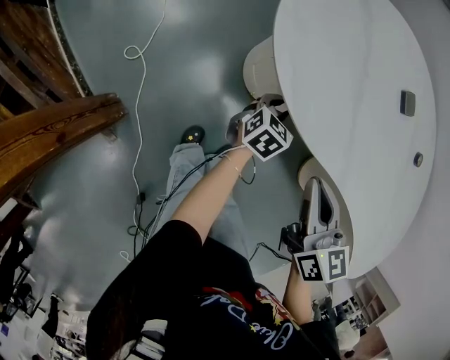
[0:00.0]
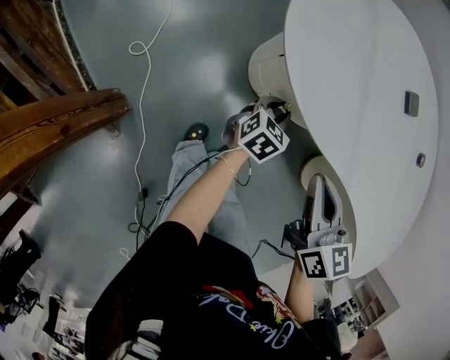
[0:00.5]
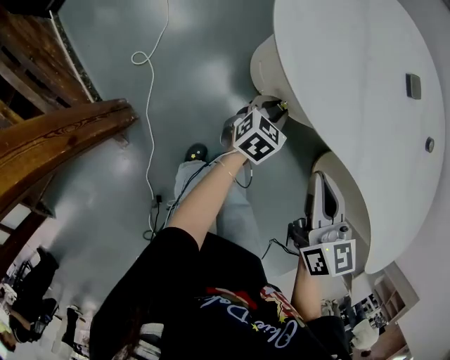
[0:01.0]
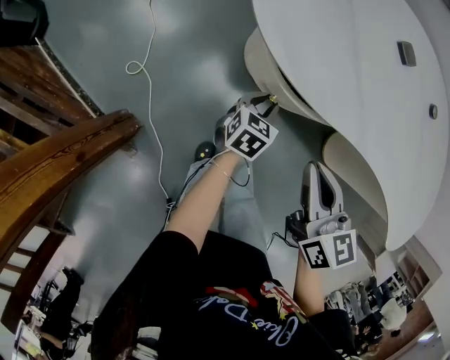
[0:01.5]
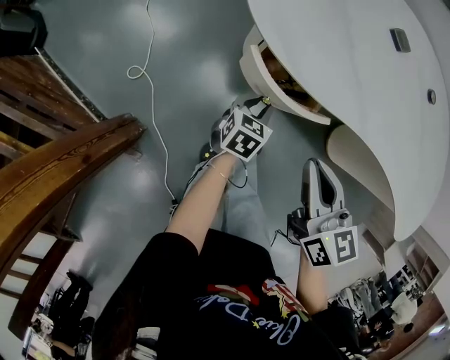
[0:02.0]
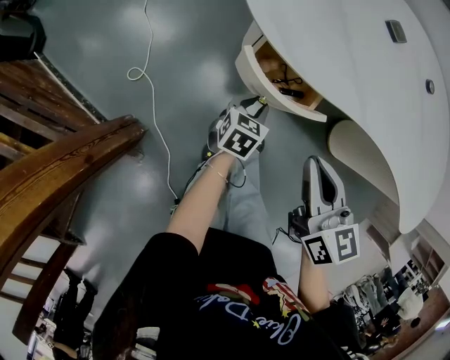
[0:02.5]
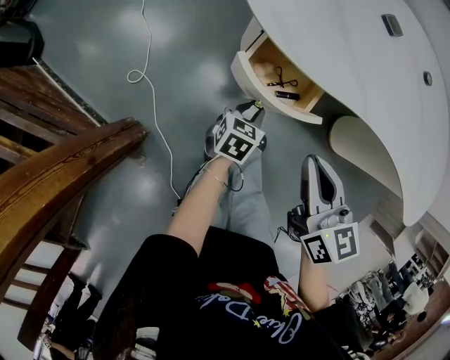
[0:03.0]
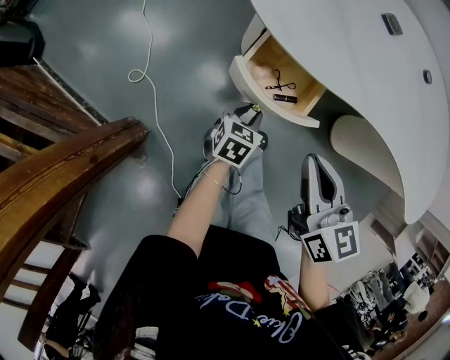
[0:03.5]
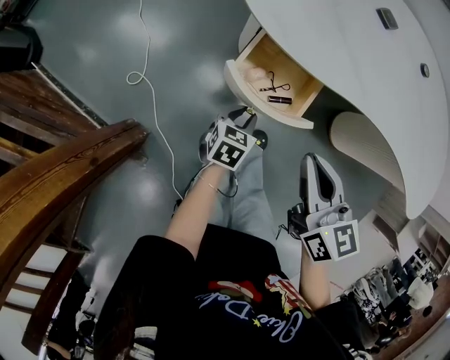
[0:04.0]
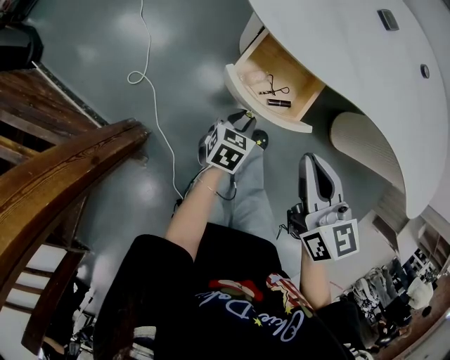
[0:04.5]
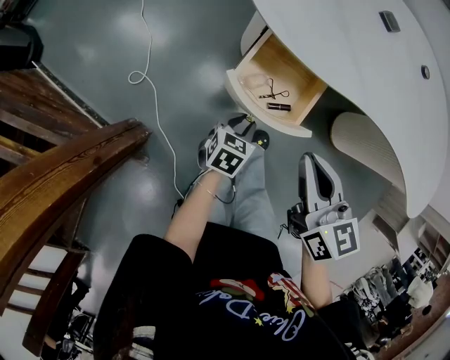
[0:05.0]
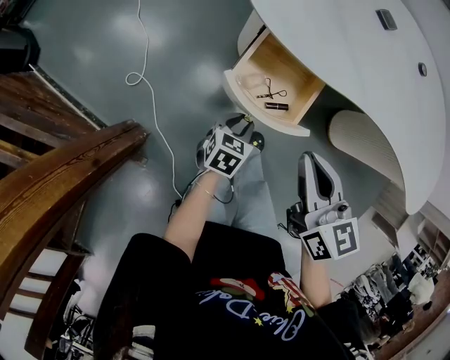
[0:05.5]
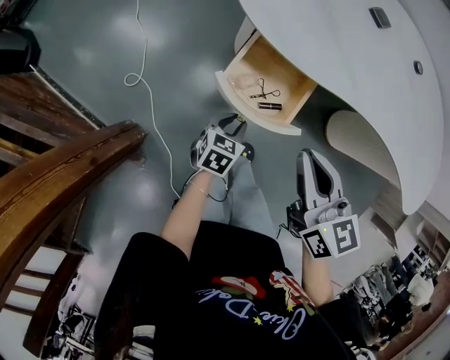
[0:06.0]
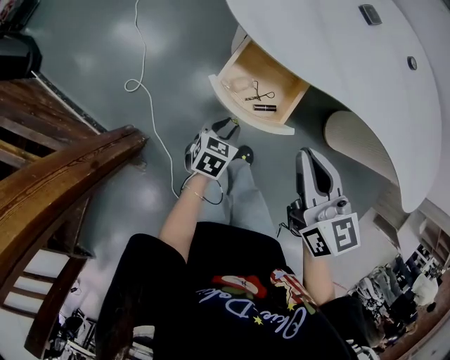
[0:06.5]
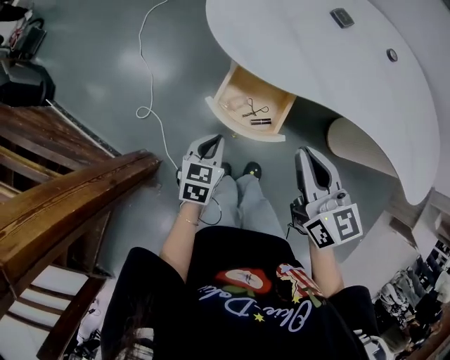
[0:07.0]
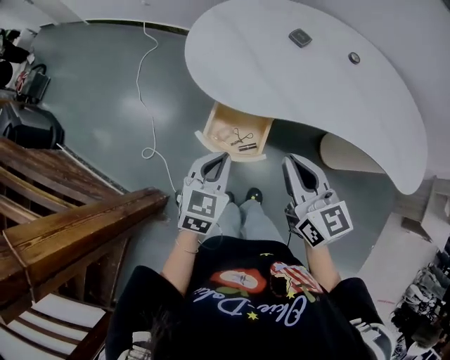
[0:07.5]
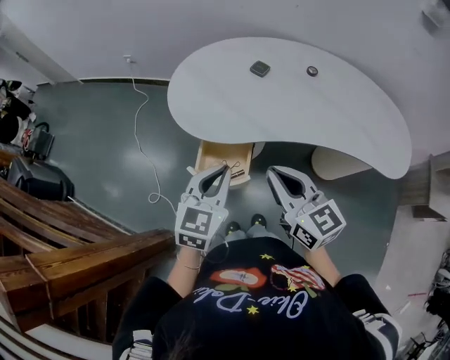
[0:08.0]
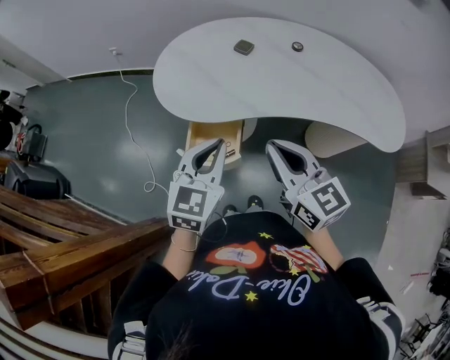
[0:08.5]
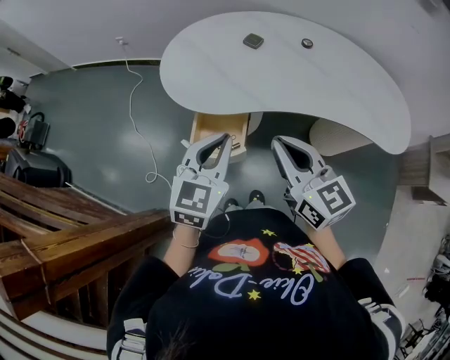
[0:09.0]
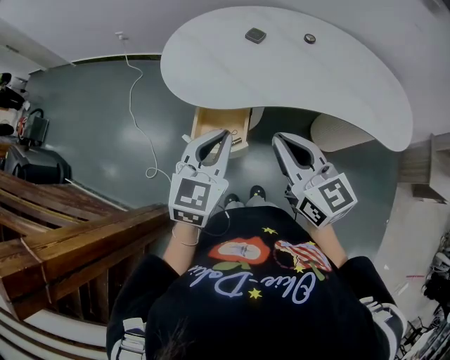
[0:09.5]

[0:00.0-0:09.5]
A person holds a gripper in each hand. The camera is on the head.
0:00.0 to 0:02.0: Both grippers move backward, about 10 cm.
0:02.0 to 0:04.0: The left gripper is displaced backward by about 10 cm.
0:04.0 to 0:05.5: The grippers make only small movements.
0:05.5 to 0:07.5: The right gripper is displaced upward and to the right by about 15 cm. Meanwhile the left gripper goes some 30 cm upward, turns by some 20 degrees, and closes up.
0:07.5 to 0:09.5: The left gripper travels upward and to the right by roughly 15 cm. The right gripper travels upward by roughly 10 cm.

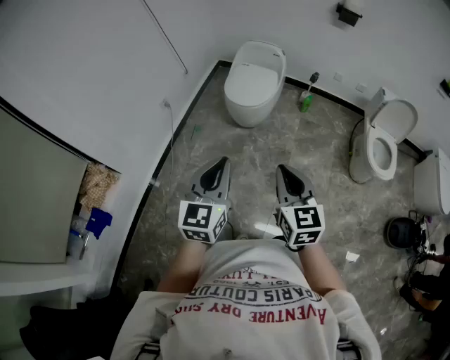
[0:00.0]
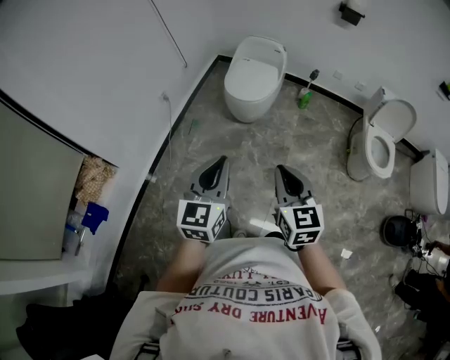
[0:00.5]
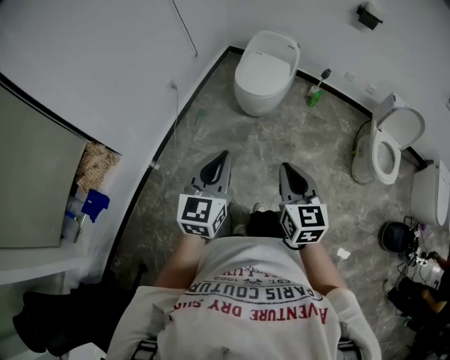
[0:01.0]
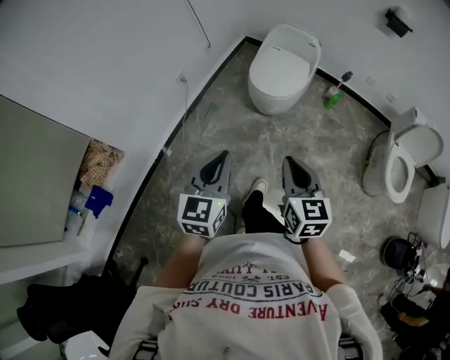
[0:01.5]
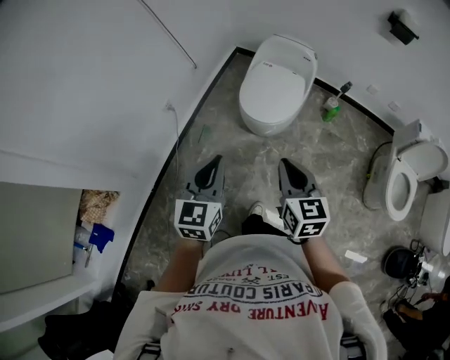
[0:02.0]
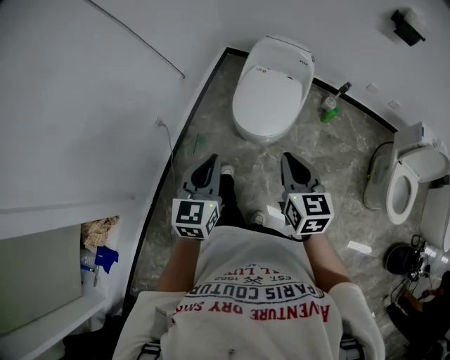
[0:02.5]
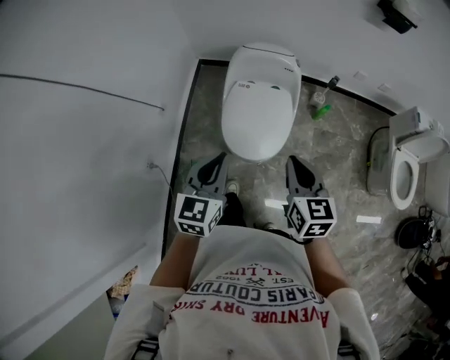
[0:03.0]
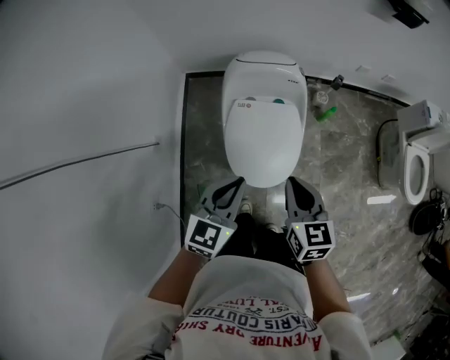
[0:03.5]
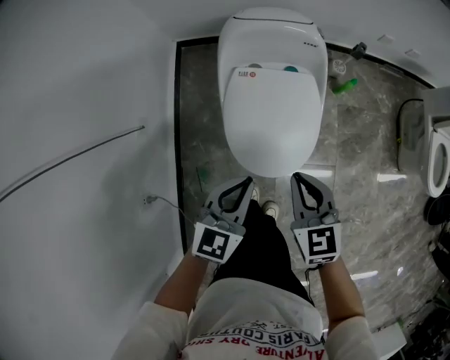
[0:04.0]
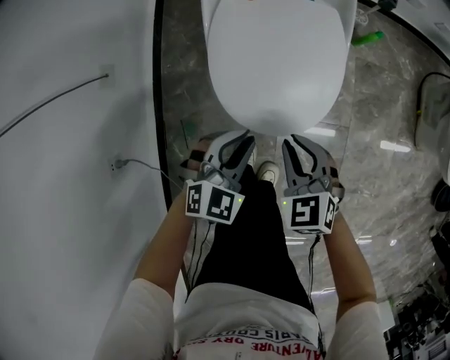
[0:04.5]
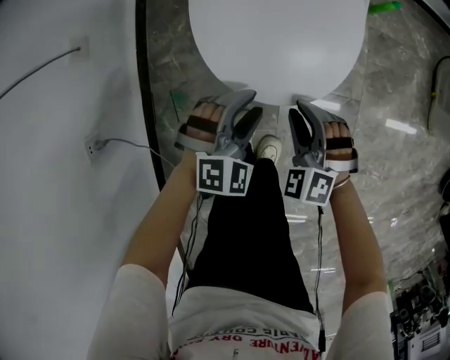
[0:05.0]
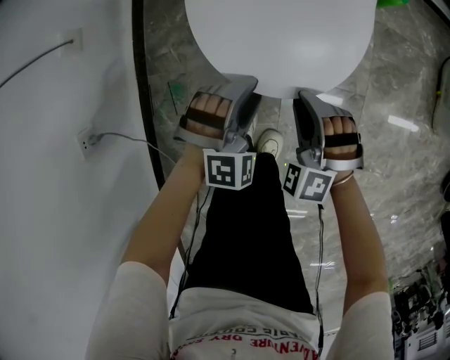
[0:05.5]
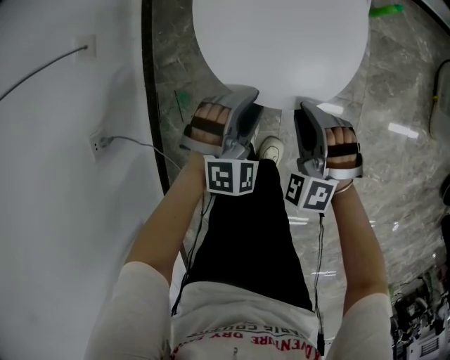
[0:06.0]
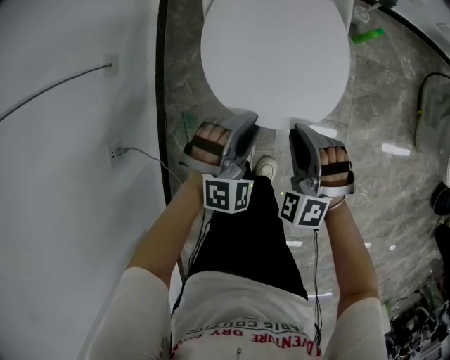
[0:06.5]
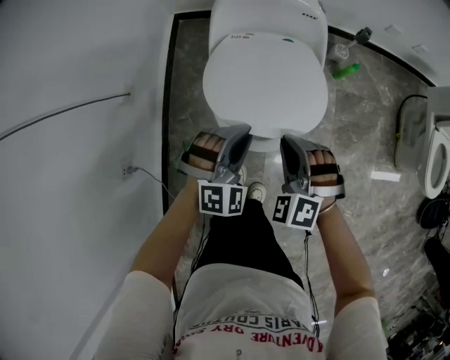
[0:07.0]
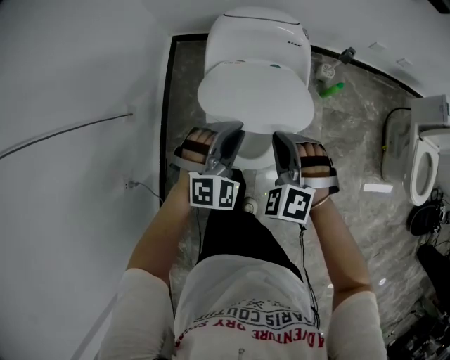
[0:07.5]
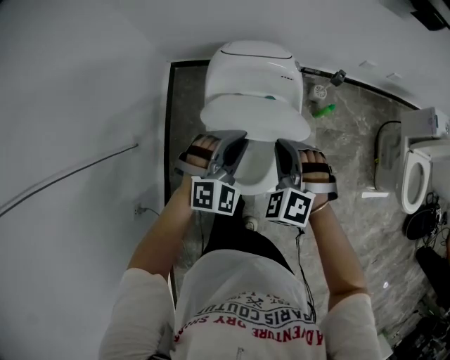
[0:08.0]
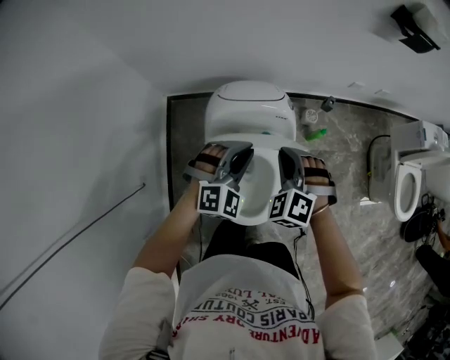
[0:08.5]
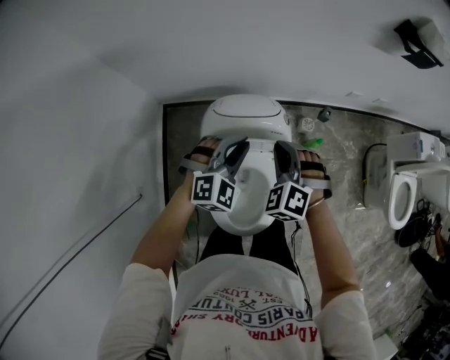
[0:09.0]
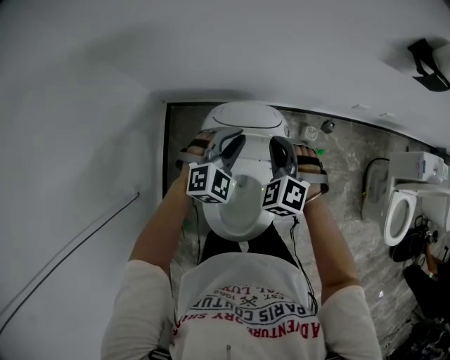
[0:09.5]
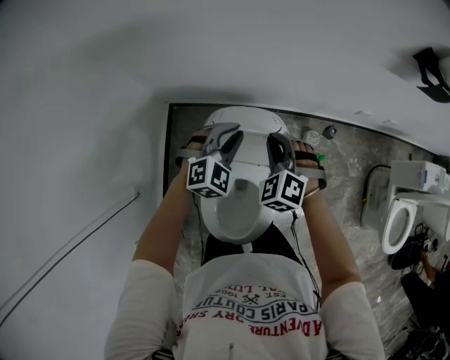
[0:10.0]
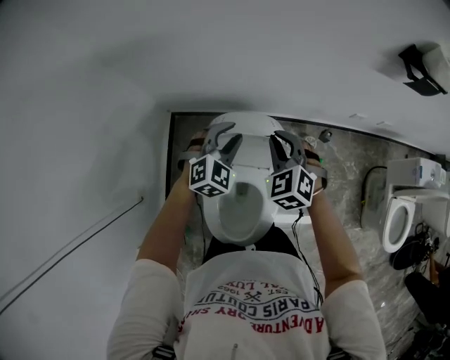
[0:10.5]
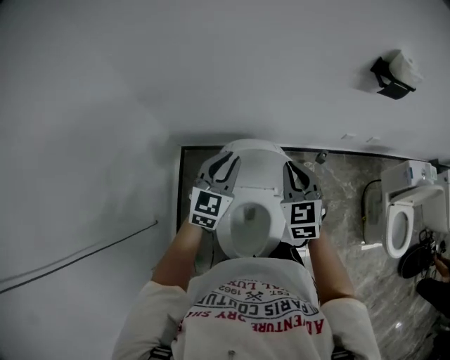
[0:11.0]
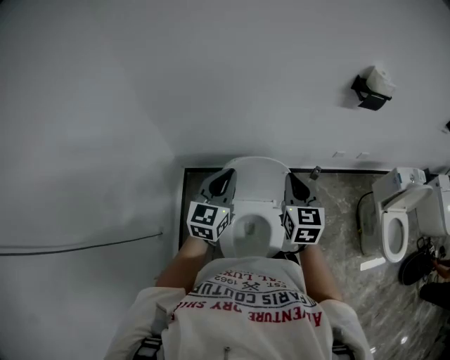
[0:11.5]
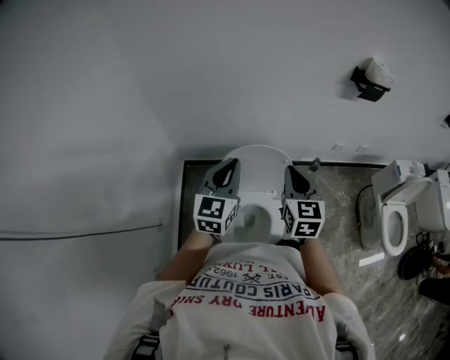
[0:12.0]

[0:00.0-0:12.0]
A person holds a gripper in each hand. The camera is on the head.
0:00.0 to 0:02.0: Both grippers travel together forward, approximately 35 cm.
0:02.0 to 0:04.0: Both grippers are carried roughly 40 cm. The left gripper swivels some 40 degrees. The right gripper changes its angle by approximately 20 degrees.
0:04.0 to 0:06.0: Both grippers travel together downward, approximately 30 cm. The right gripper twists approximately 60 degrees counterclockwise, seen from behind, while the left gripper rolls clockwise, seen from behind, by approximately 50 degrees, and opens its fingers.
0:06.0 to 0:08.0: Both grippers move upward and forward, about 40 cm. The left gripper closes up.
0:08.0 to 0:10.0: The grippers both shift forward by some 30 cm.
0:10.0 to 0:12.0: Both grippers move upward and backward, roughly 30 cm. The right gripper rolls clockwise, seen from behind, by roughly 50 degrees. The left gripper changes its angle by approximately 50 degrees.

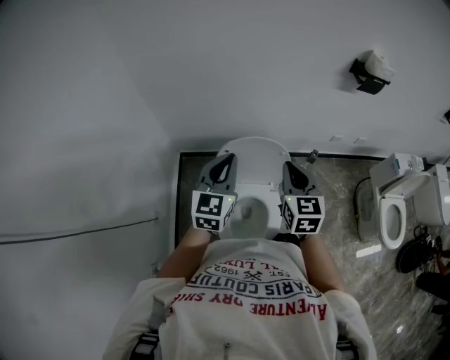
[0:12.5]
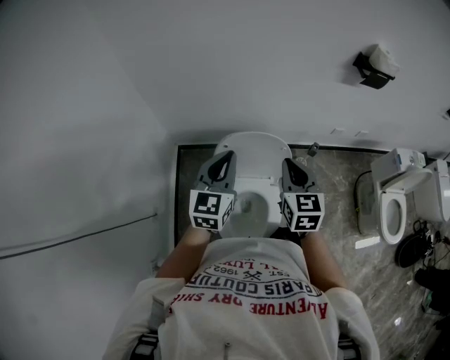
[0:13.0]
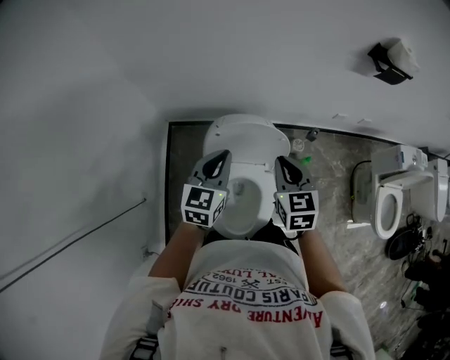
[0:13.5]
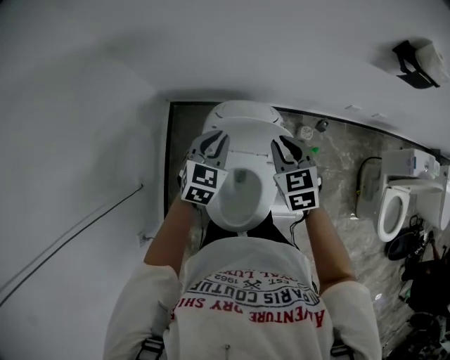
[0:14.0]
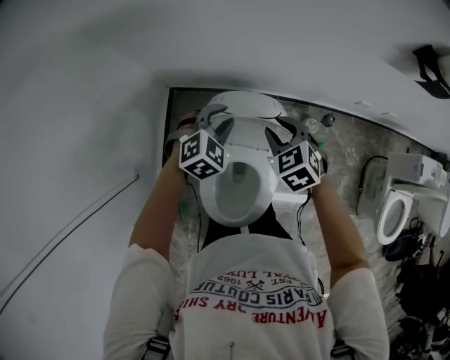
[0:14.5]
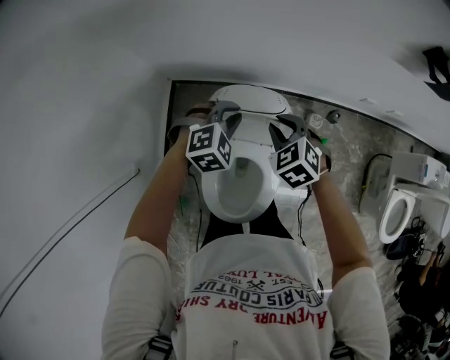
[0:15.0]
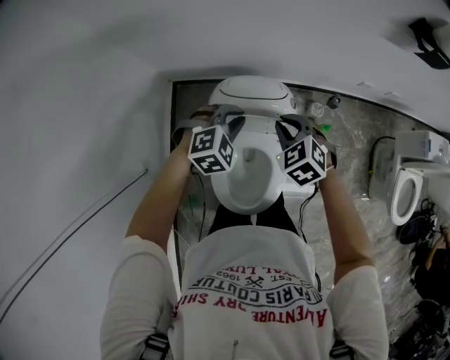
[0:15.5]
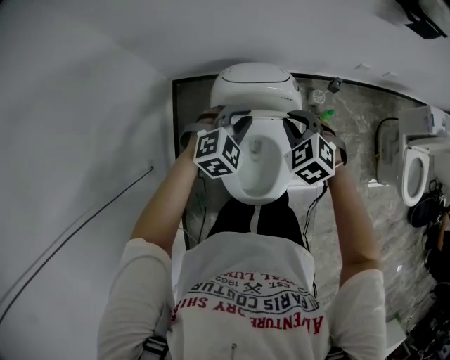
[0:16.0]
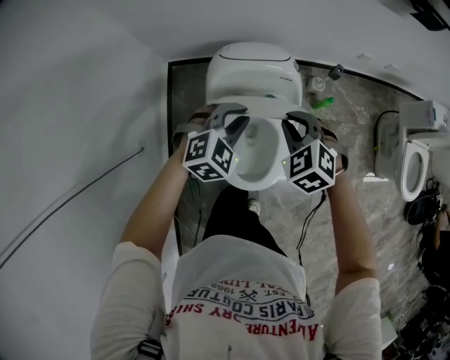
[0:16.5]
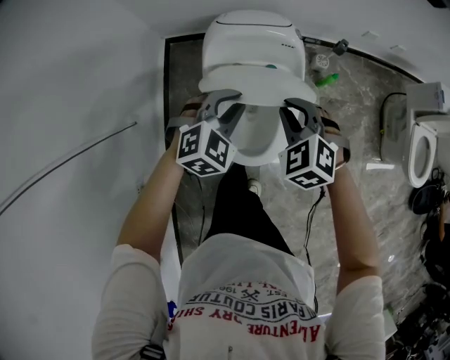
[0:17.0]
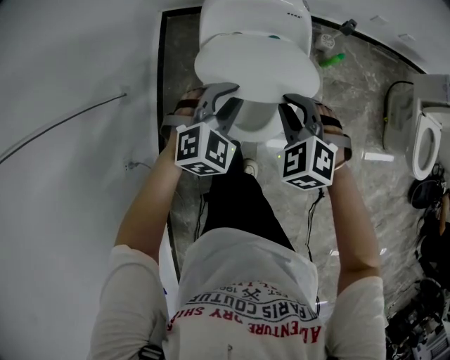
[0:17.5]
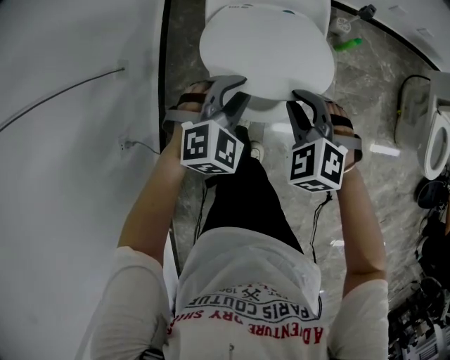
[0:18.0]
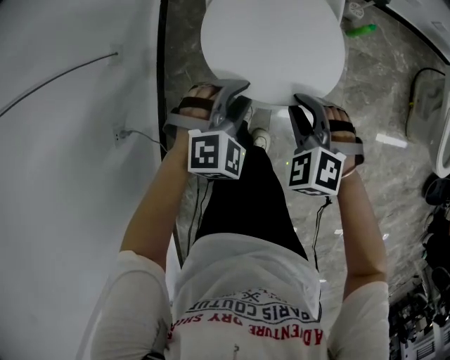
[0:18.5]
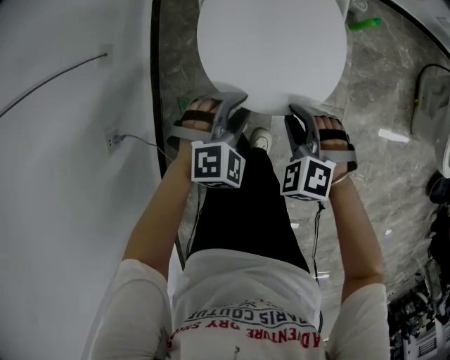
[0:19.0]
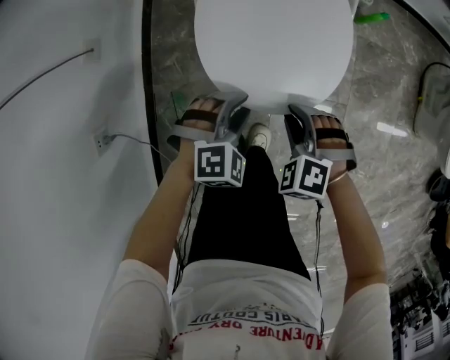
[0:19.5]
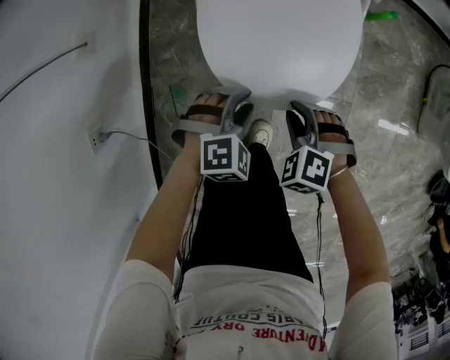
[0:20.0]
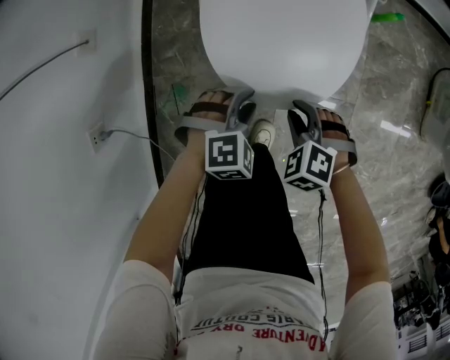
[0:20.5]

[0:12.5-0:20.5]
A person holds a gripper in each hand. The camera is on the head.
0:12.5 to 0:14.5: Both grippers travel together downward and forward, some 25 cm. The left gripper points its fingers about 40 degrees further downward, and opens its fingers; the right gripper angles its fingers downward, by about 30 degrees.
0:14.5 to 0:16.5: The grippers both shift backward by approximately 20 cm.
0:16.5 to 0:18.5: The grippers both shift backward and downward by some 35 cm.
0:18.5 to 0:20.5: Both grippers travel together downward, approximately 20 cm.
